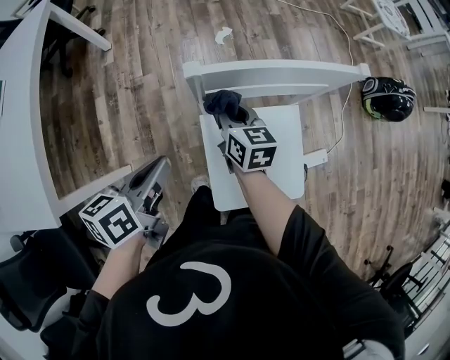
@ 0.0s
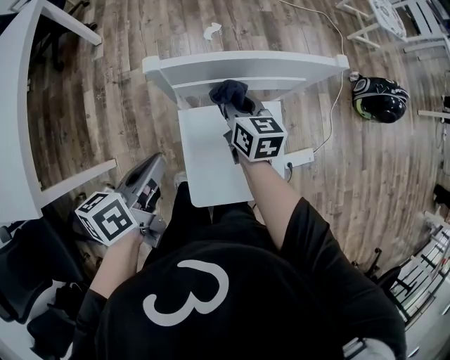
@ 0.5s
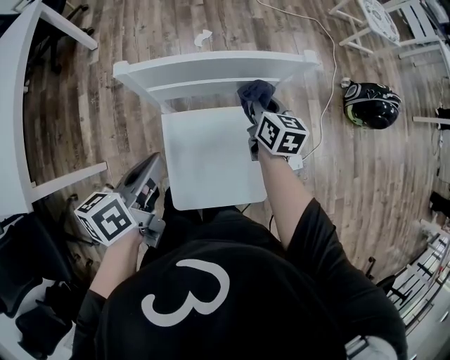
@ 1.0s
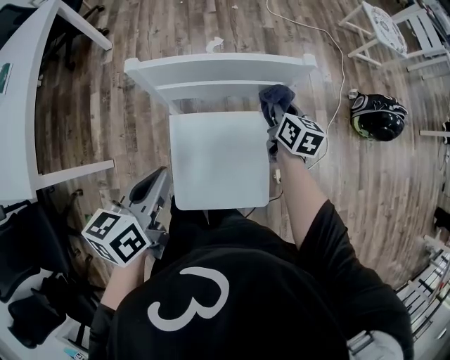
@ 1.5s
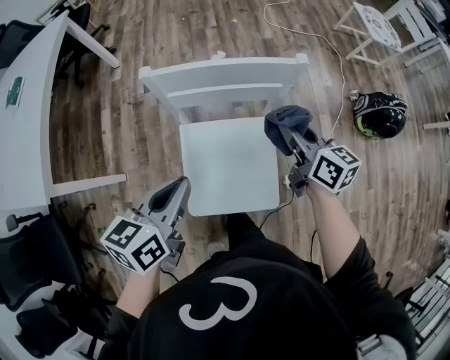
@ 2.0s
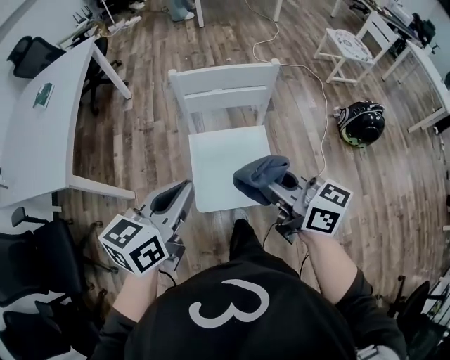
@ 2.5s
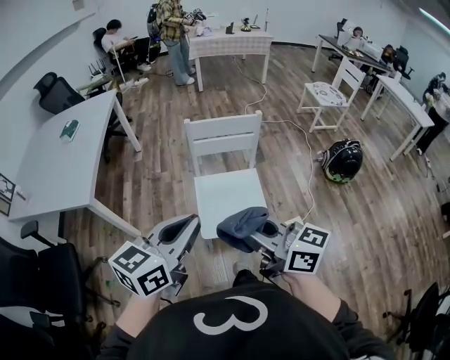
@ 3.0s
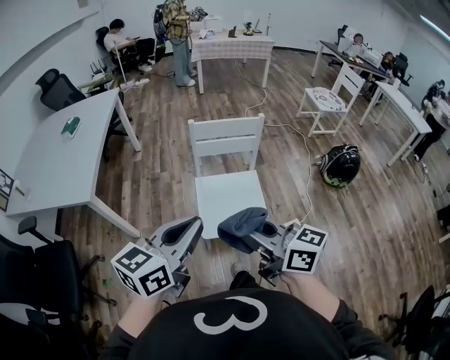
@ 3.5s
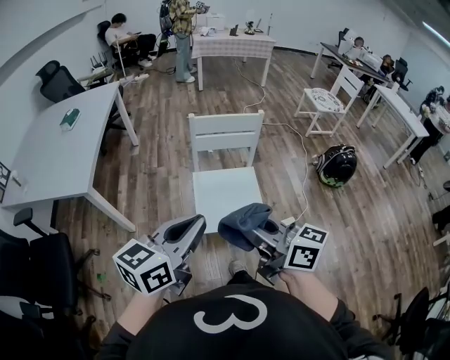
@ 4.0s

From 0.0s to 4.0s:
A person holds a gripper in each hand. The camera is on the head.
From 0.0s to 2.0s: The left gripper moves to the right and backward, about 20 cm; the right gripper heads to the right and upward, covering approximately 30 cm.
From 2.0s to 4.0s: The left gripper travels backward and upward by about 40 cm, and changes its angle by some 30 degrees, while the right gripper goes some 50 cm backward, upward and to the left, and turns by approximately 20 degrees.

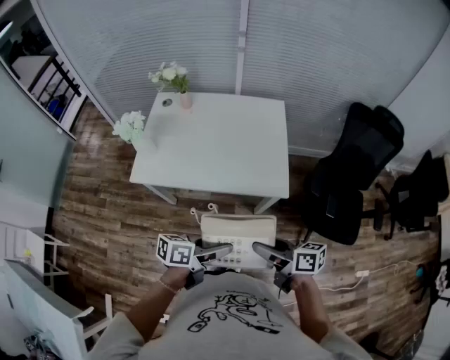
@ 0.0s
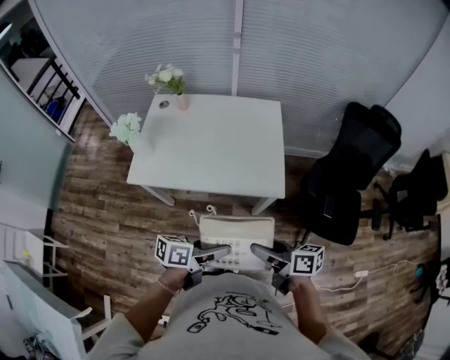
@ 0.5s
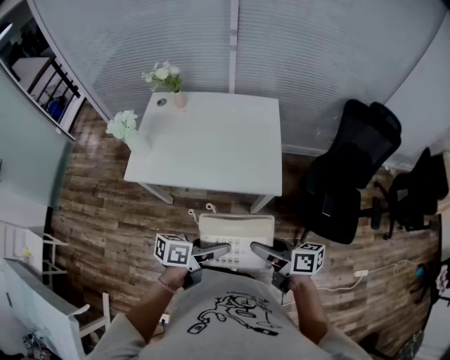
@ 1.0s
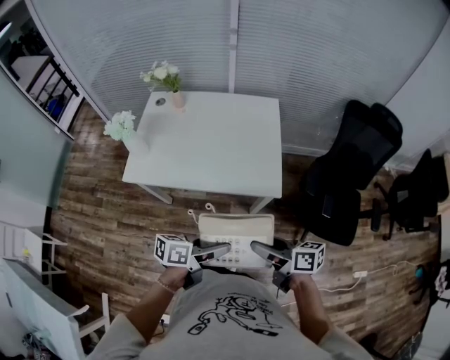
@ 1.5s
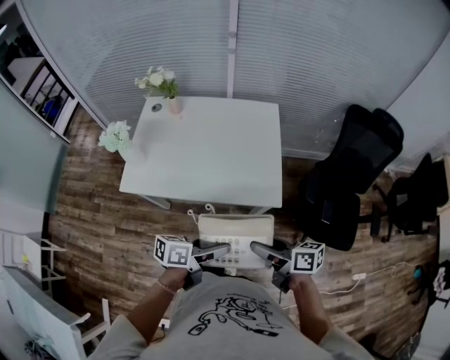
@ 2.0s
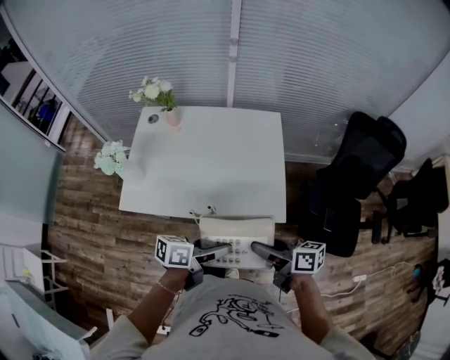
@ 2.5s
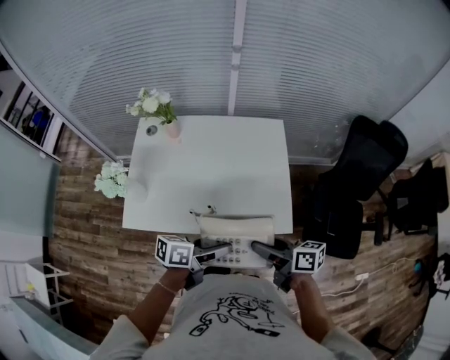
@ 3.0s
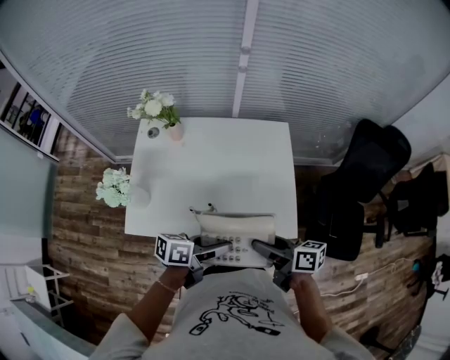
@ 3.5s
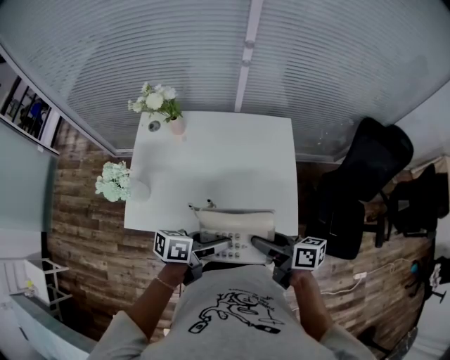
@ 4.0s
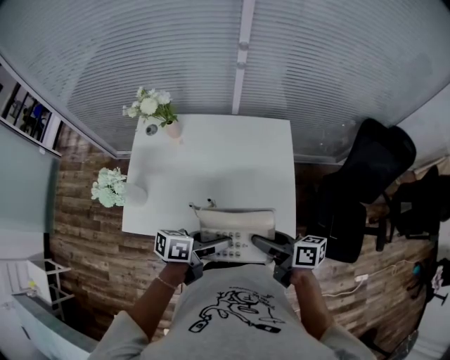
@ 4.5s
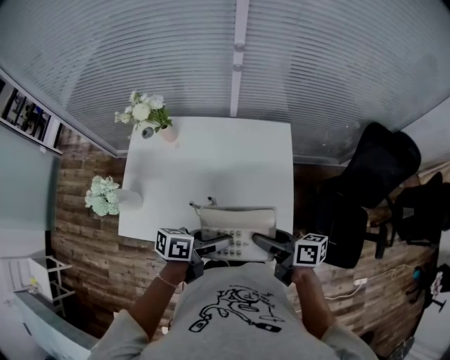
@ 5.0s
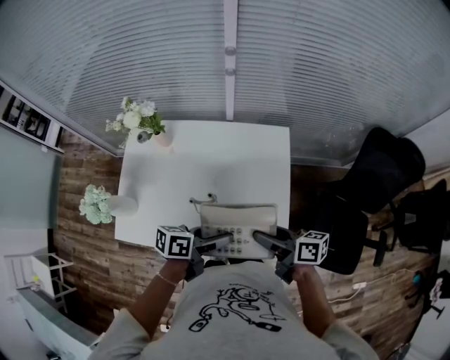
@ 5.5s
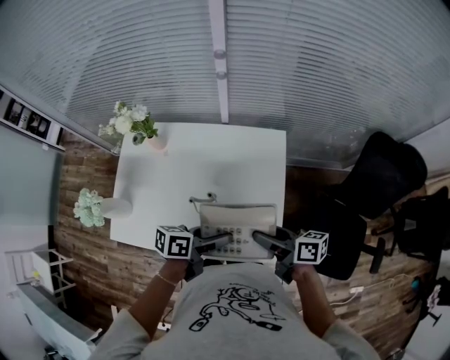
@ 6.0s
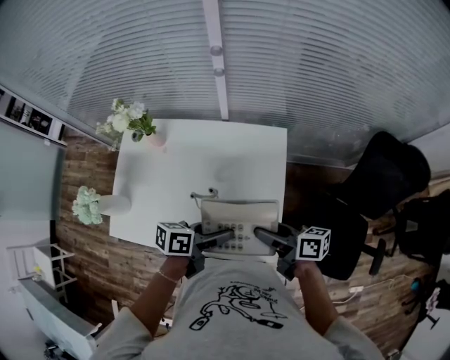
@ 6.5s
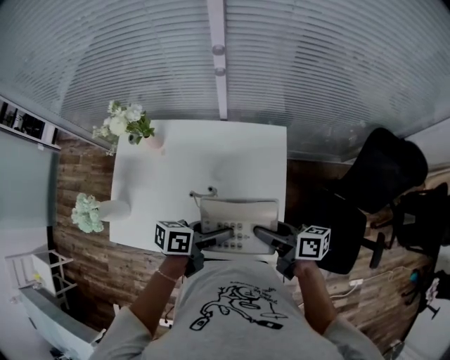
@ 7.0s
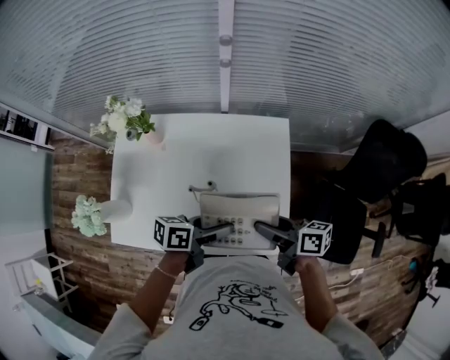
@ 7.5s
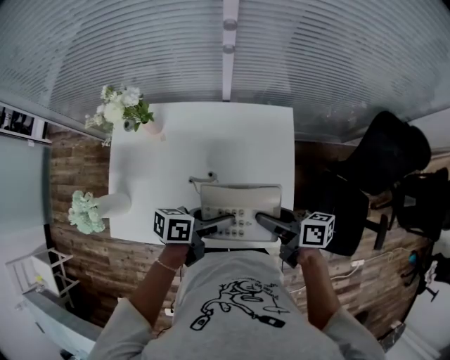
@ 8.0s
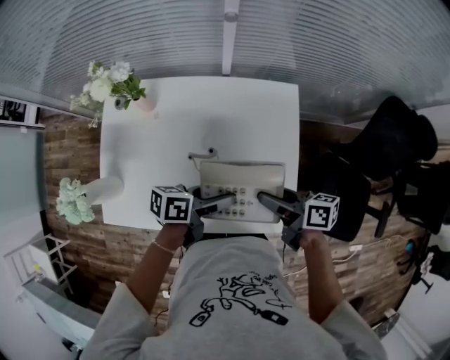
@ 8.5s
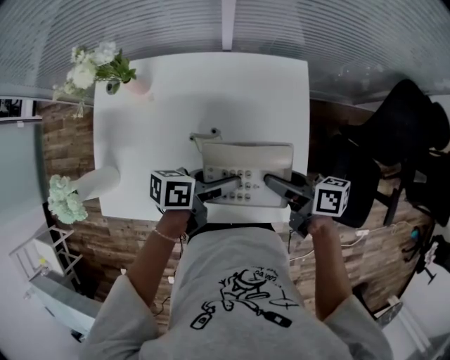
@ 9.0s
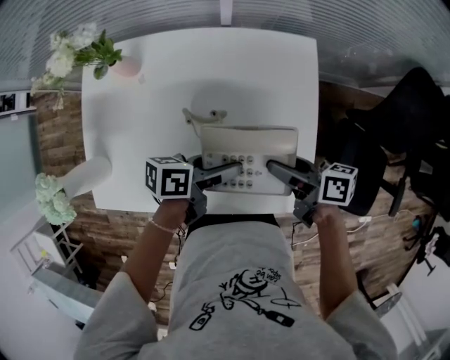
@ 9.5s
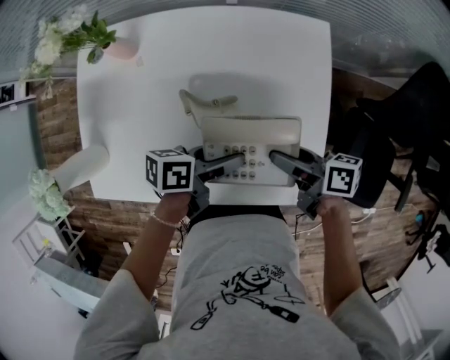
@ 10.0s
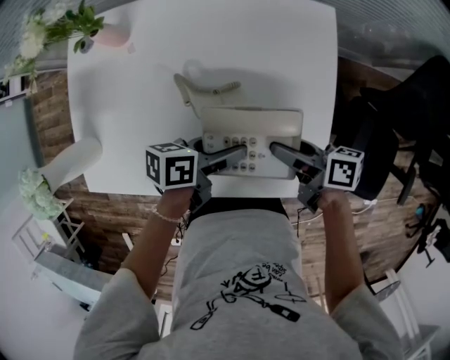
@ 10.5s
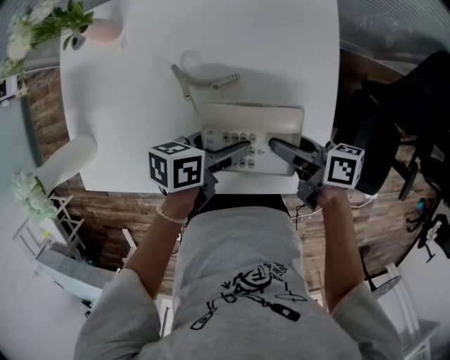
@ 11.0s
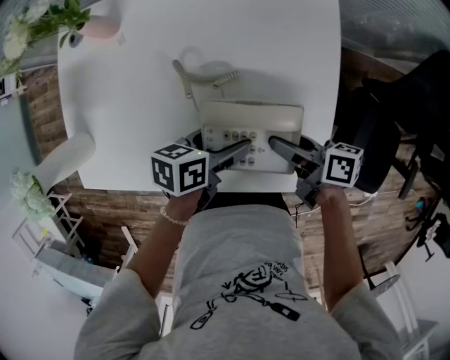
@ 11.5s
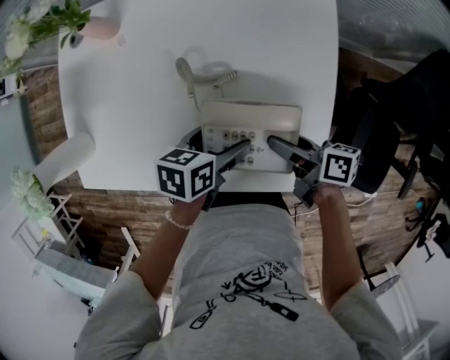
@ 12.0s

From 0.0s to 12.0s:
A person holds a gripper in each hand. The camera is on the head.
From 0.0s to 2.0s: Both grippers move forward, roughly 5 cm.
From 2.0s to 4.0s: The two grippers go about 20 cm forward and to the left.
From 4.0s to 6.0s: Both grippers travel together forward and to the right, approximately 15 cm.
From 6.0s to 8.0s: The left gripper moves some 5 cm.
From 8.0s to 10.0s: Both grippers move downward, about 10 cm.
From 10.0s to 12.0s: The two grippers go approximately 5 cm downward. The left gripper turns by some 20 degrees.

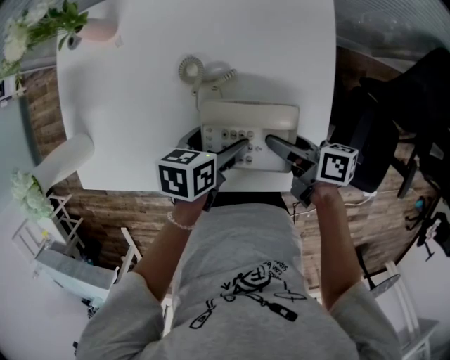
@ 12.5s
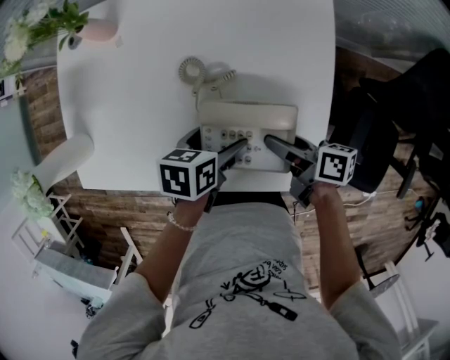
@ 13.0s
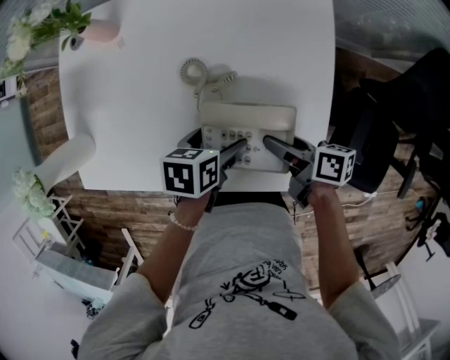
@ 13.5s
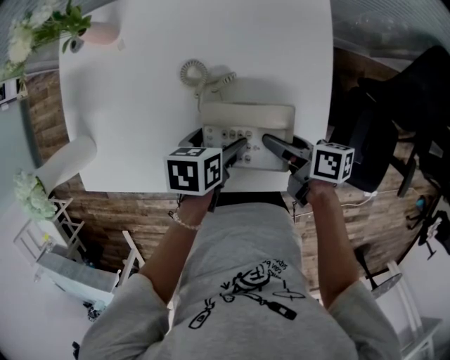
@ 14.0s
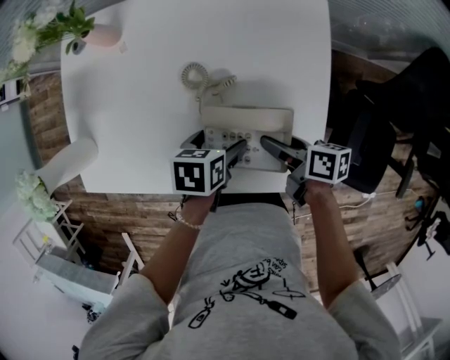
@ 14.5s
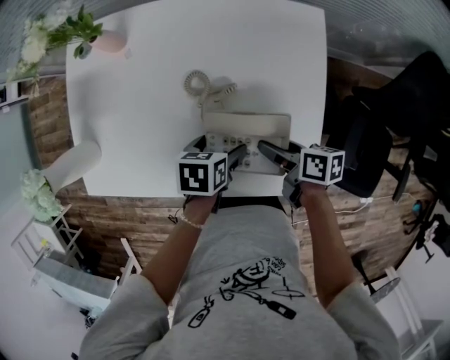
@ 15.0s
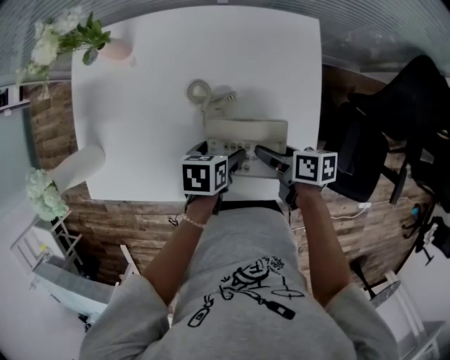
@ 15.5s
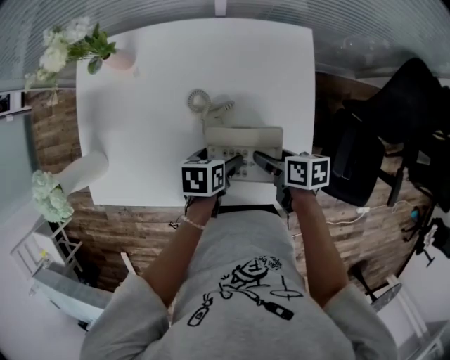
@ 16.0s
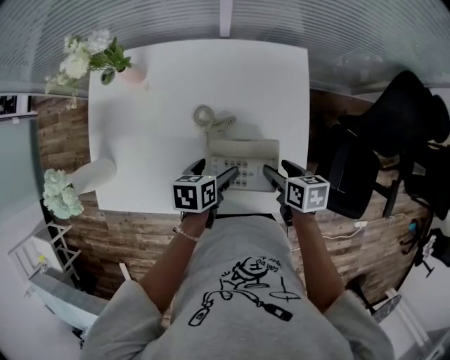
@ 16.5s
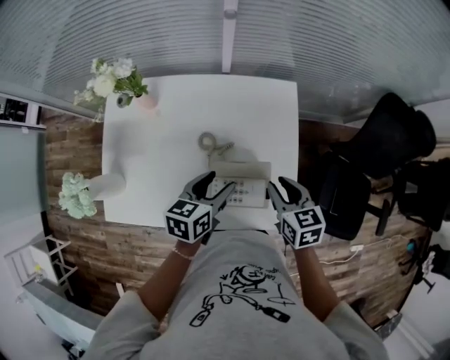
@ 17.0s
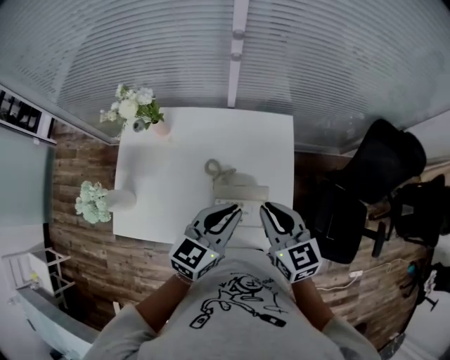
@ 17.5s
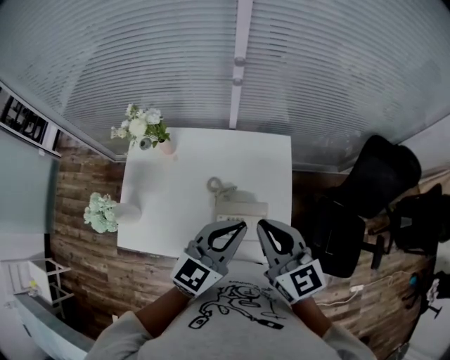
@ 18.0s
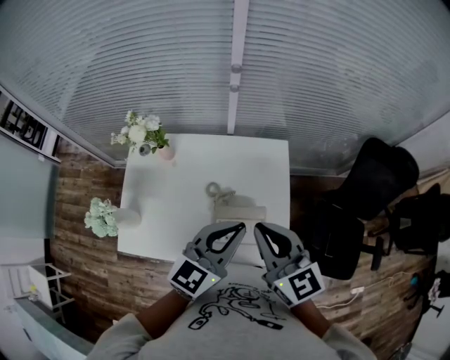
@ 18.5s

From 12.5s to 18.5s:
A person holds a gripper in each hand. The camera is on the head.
From 12.5s to 14.5s: There are only small adjustments of the grippers.
From 14.5s to 16.5s: The right gripper rotates about 30 degrees.
From 16.5s to 18.5s: Both grippers travel together upward, roughly 35 cm. The left gripper tilts its fingers some 40 degrees upward, and closes up. The right gripper points its fingers approximately 40 degrees further upward, and closes its fingers.

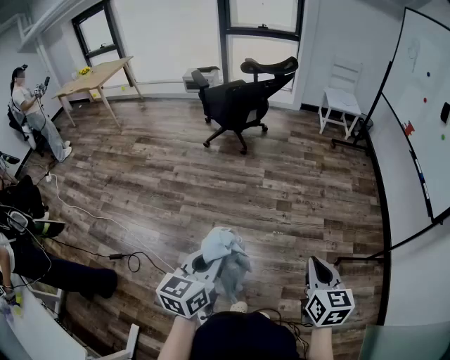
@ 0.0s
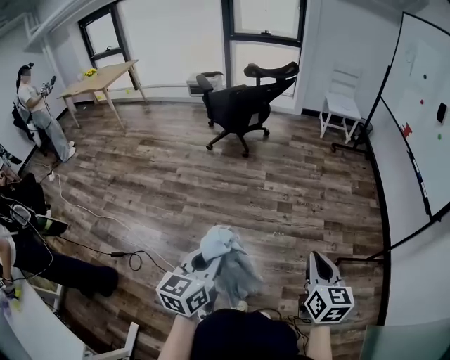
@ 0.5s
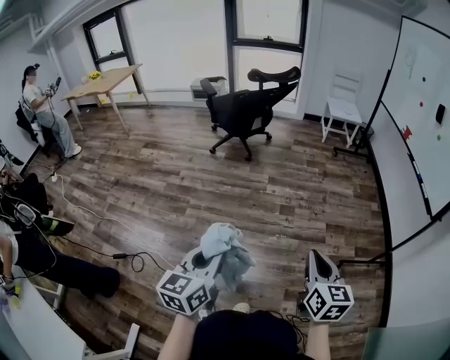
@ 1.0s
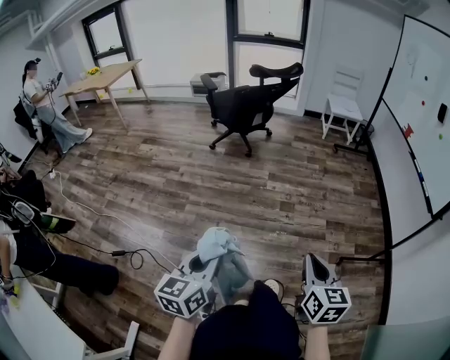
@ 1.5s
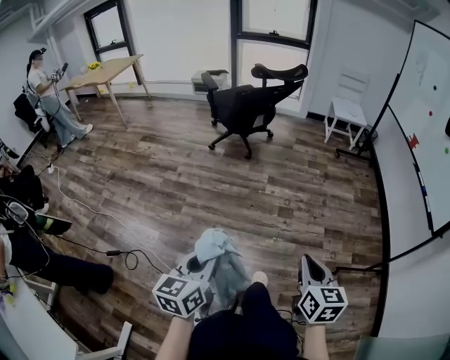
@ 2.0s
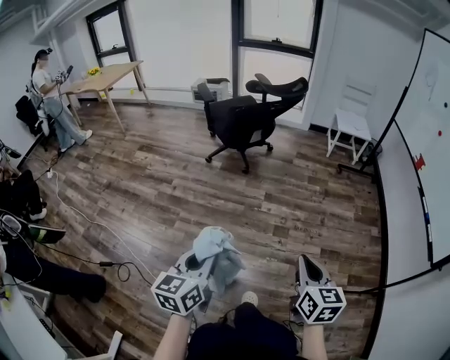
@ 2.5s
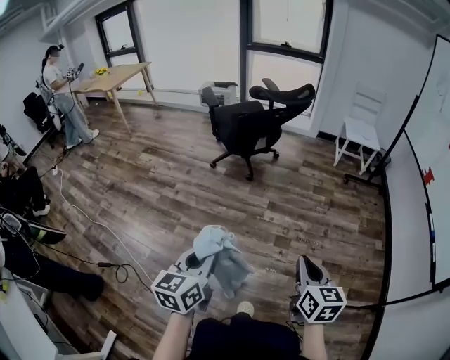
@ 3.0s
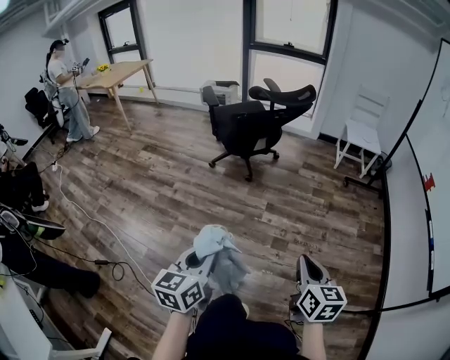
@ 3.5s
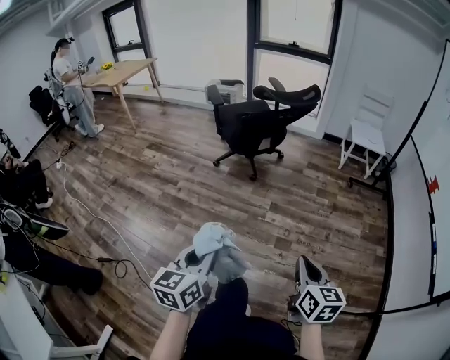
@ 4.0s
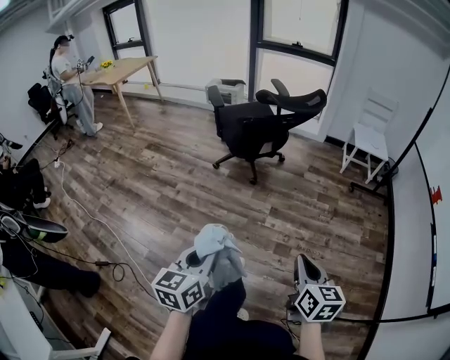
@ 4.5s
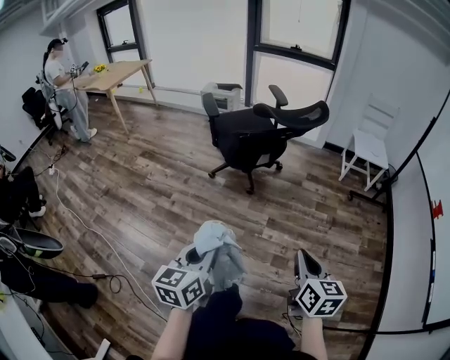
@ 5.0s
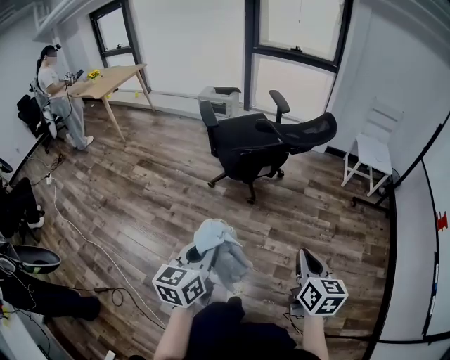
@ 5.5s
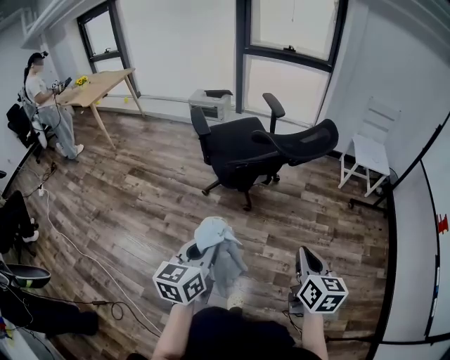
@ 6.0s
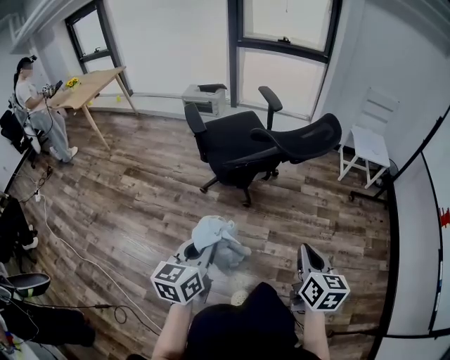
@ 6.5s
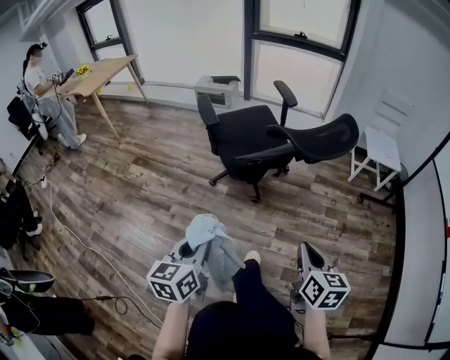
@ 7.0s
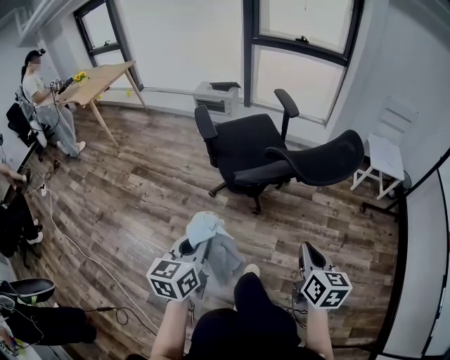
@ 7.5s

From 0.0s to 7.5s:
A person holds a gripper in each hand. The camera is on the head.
From 2.0s to 4.0s: The two grippers go approximately 25 cm forward.
From 4.0s to 5.5s: Both grippers move forward, about 25 cm.
From 5.5s to 7.5s: The grippers both shift forward by roughly 20 cm.